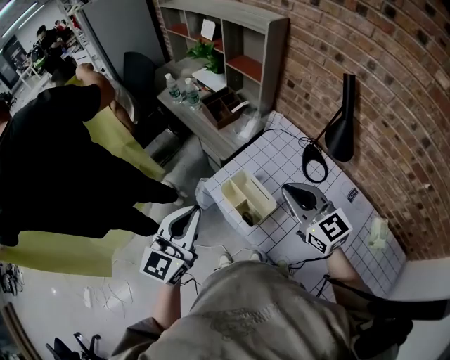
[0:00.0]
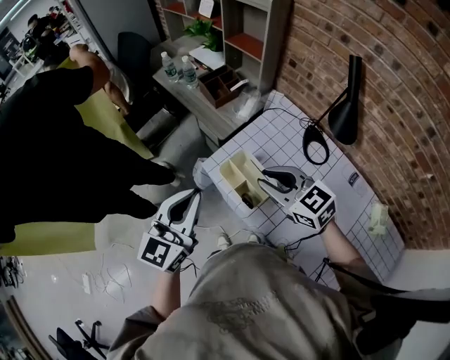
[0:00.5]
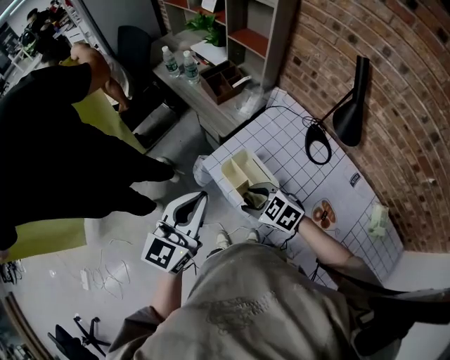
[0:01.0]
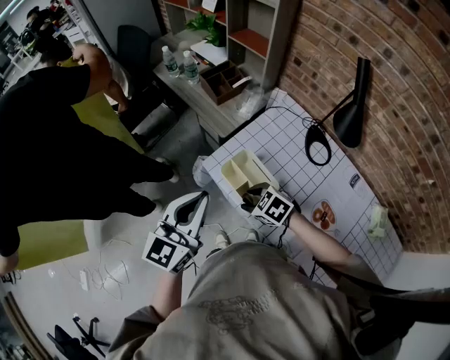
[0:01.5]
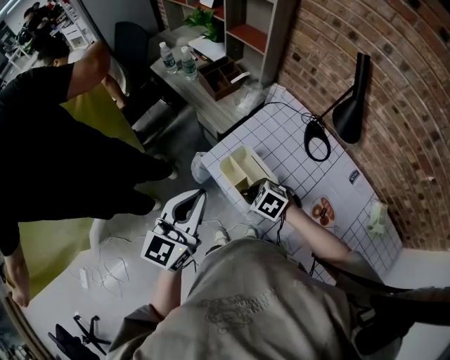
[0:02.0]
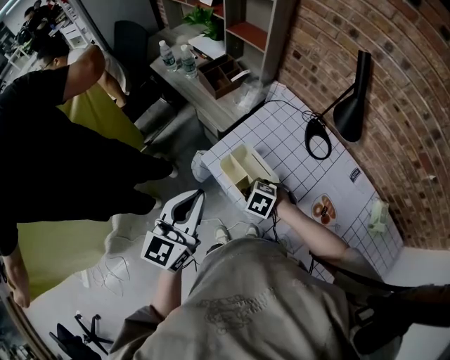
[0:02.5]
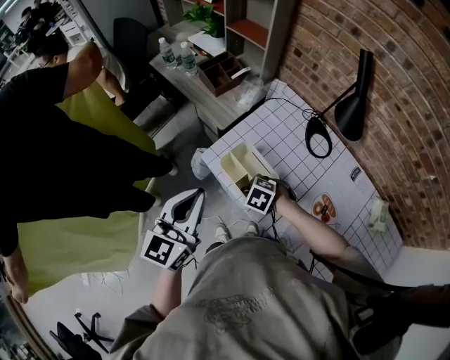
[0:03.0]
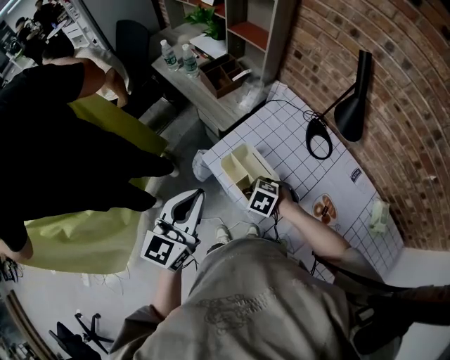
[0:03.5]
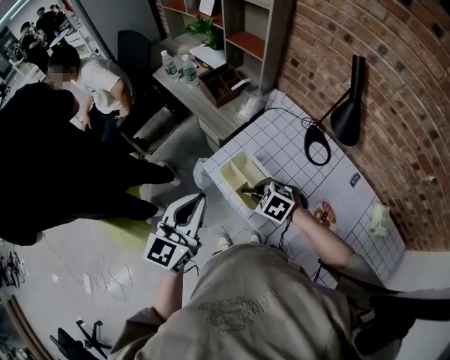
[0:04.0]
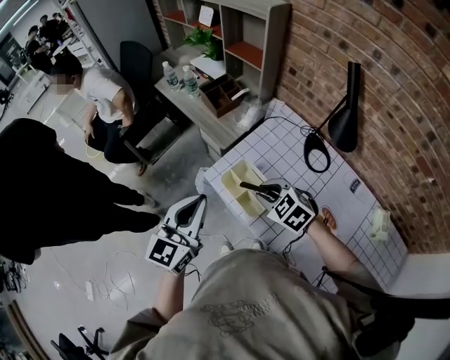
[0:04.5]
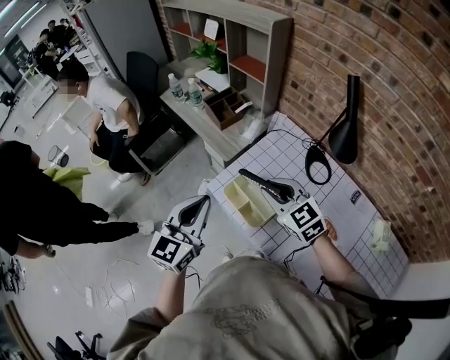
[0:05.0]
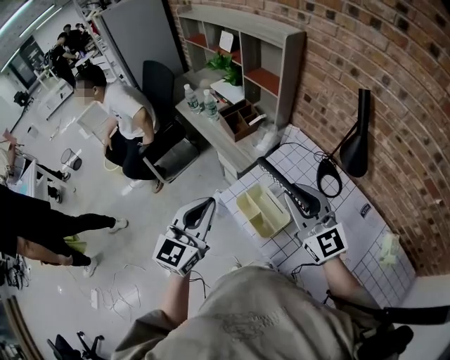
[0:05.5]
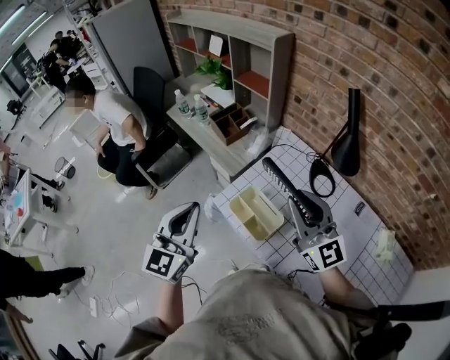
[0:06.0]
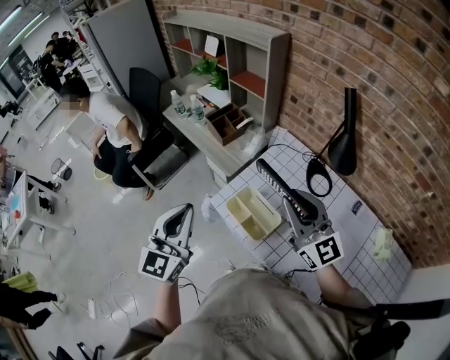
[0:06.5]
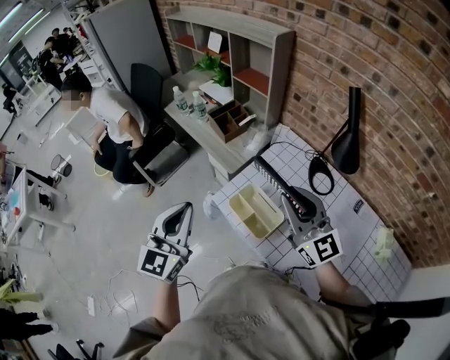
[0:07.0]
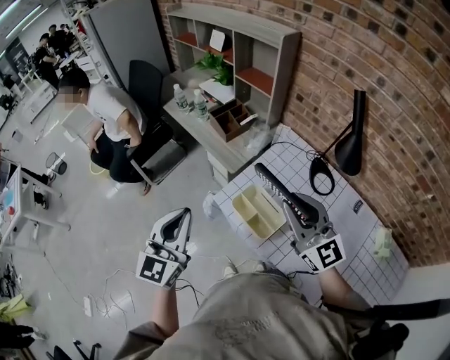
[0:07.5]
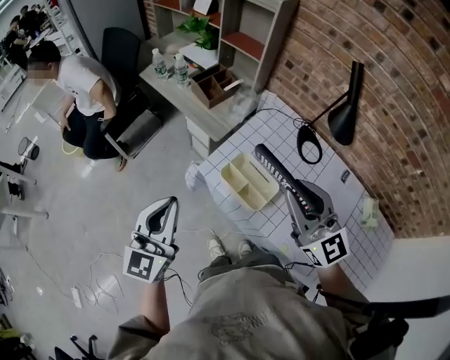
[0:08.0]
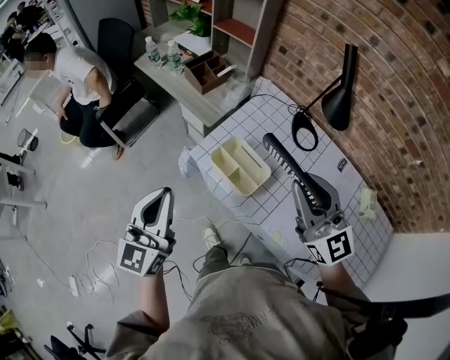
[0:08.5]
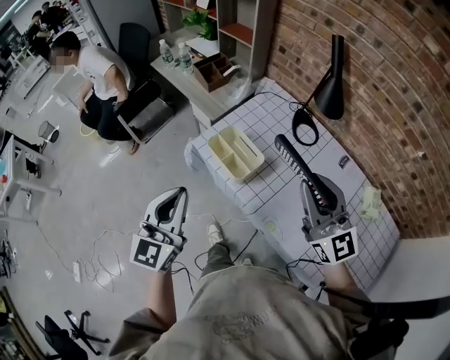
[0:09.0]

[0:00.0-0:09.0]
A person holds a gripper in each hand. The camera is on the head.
0:00.0 to 0:02.0: The right gripper moves downward, about 25 cm, points its fingers about 50 degrees further downward, and opens and closes again.
0:02.0 to 0:04.5: The right gripper travels upward by approximately 10 cm.
0:04.5 to 0:07.0: The left gripper moves to the left, some 5 cm, while the right gripper goes roughly 20 cm upward, and angles its fingers upward, by about 60 degrees.
0:07.0 to 0:09.0: The left gripper travels backward by roughly 15 cm; the right gripper goes roughly 20 cm backward and to the right.

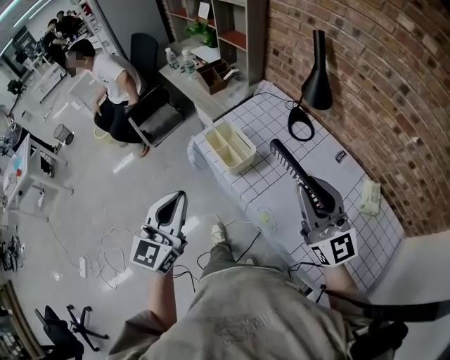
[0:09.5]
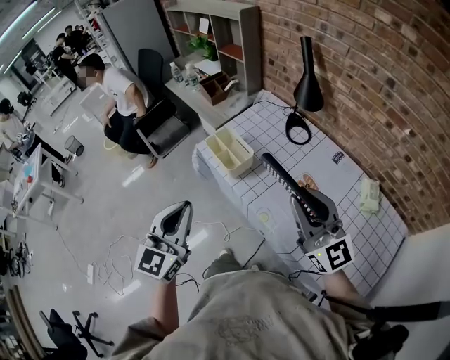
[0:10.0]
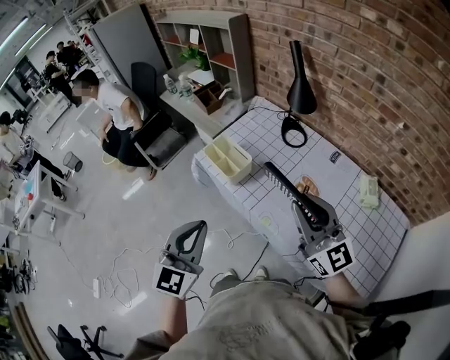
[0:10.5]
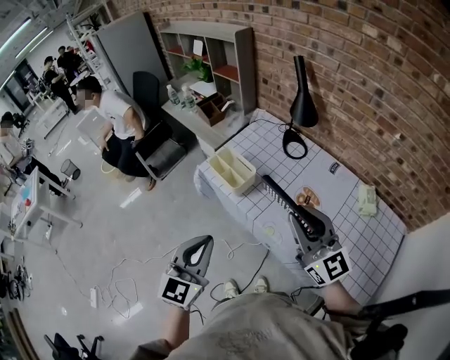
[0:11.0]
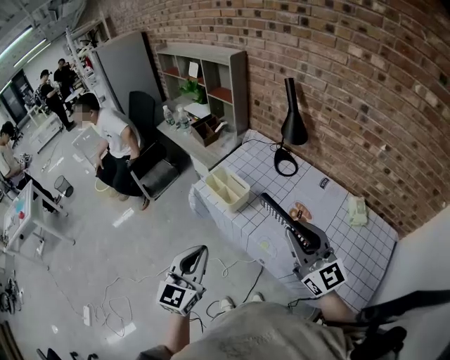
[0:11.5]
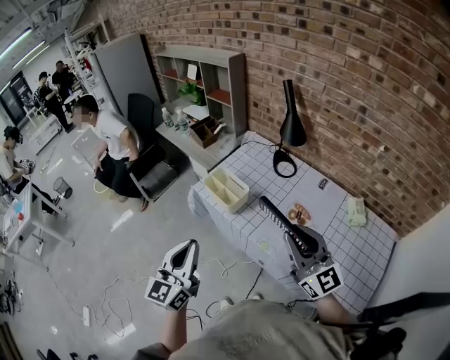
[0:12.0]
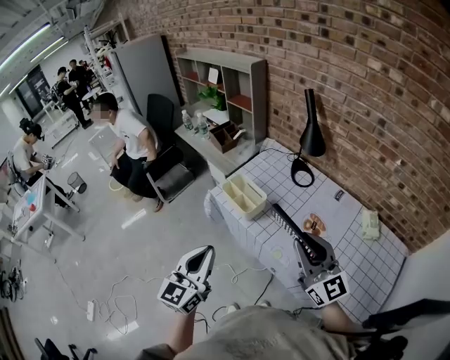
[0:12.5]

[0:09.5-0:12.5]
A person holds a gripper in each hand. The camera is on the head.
0:09.5 to 0:11.0: The two grippers go about 10 cm backward.
0:11.0 to 0:12.5: The left gripper travels to the left by about 5 cm.

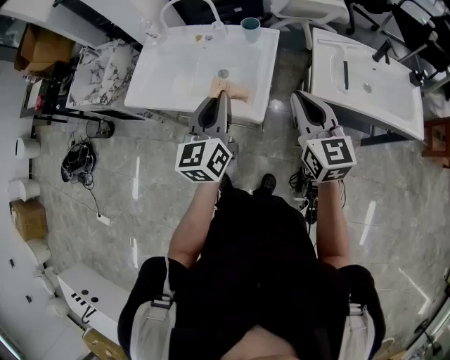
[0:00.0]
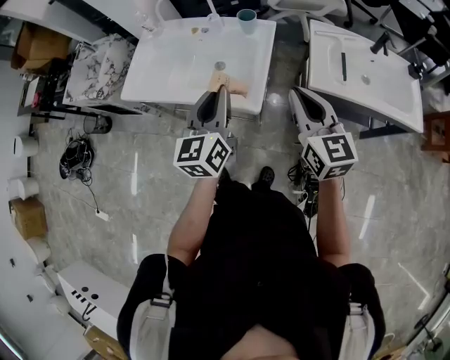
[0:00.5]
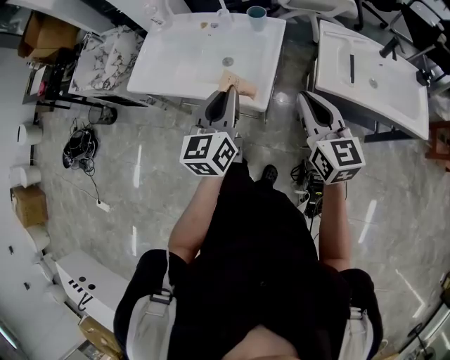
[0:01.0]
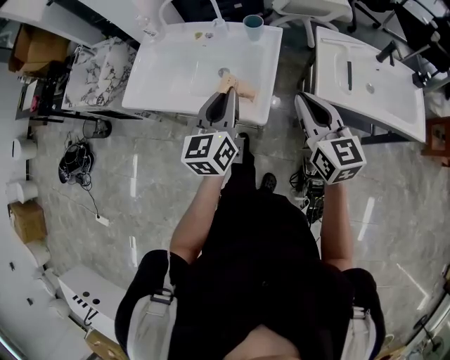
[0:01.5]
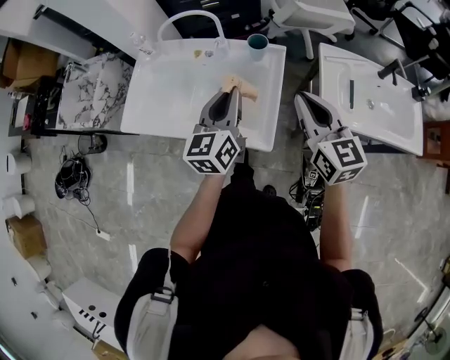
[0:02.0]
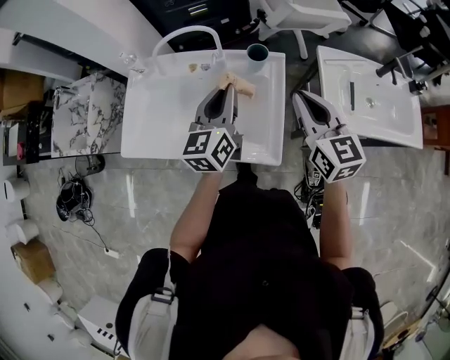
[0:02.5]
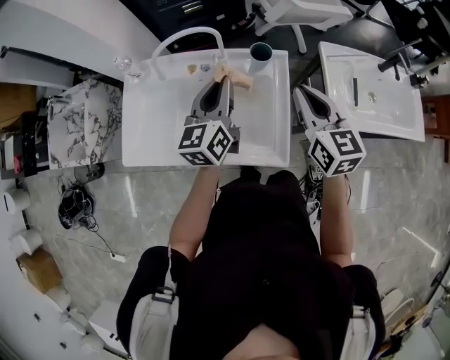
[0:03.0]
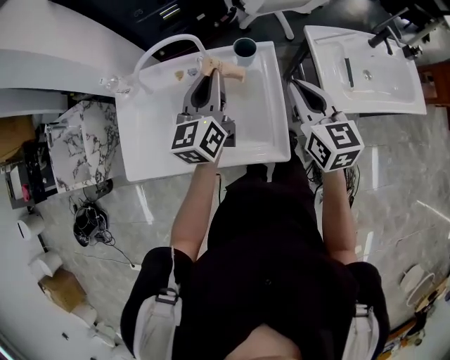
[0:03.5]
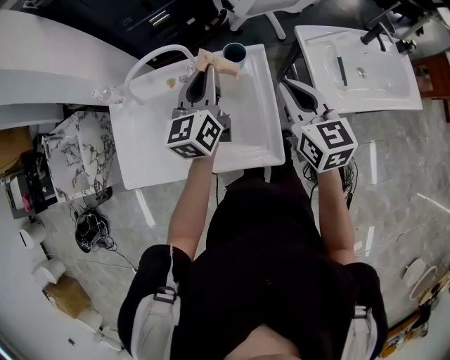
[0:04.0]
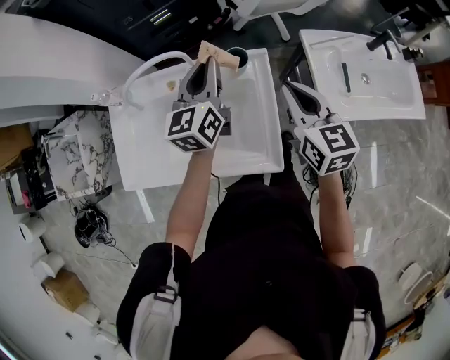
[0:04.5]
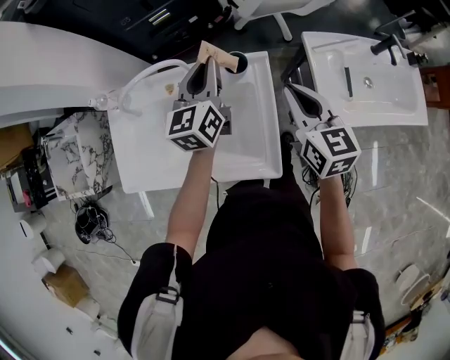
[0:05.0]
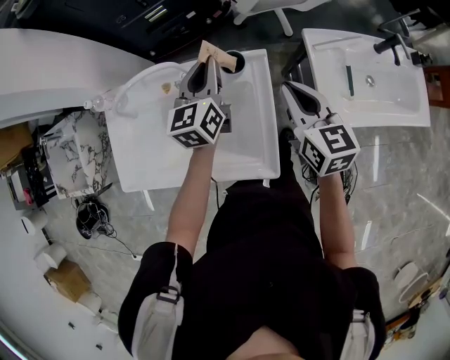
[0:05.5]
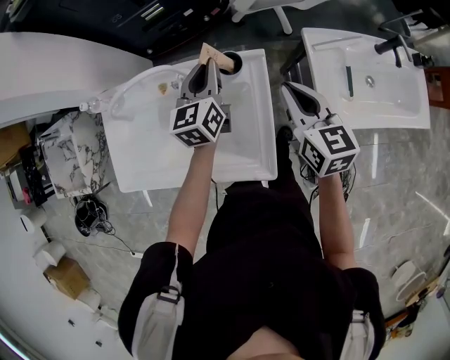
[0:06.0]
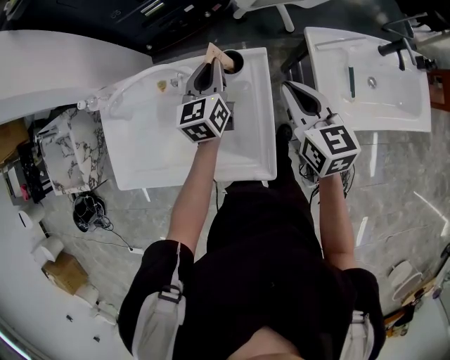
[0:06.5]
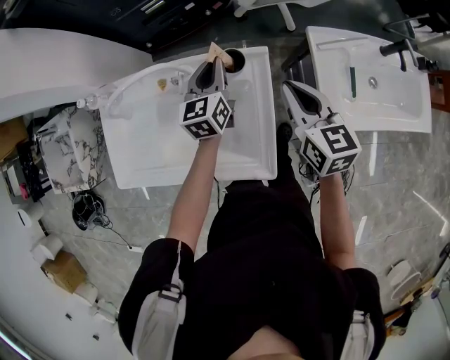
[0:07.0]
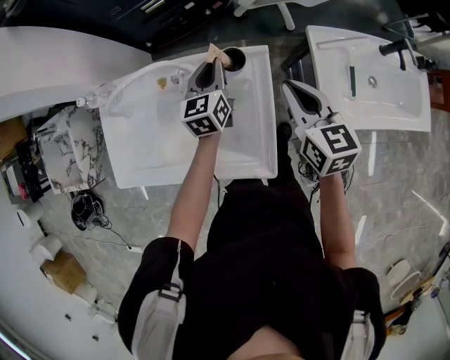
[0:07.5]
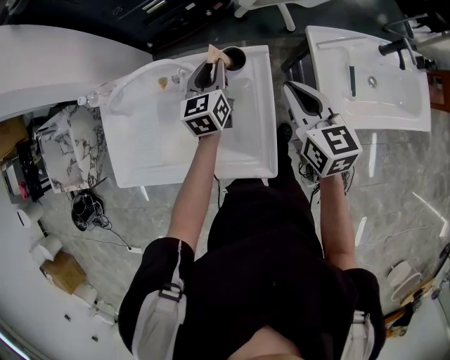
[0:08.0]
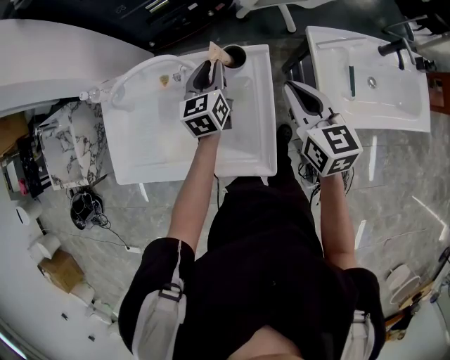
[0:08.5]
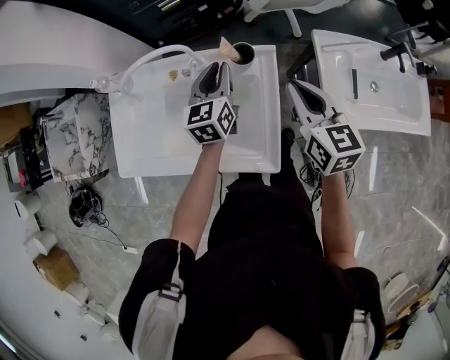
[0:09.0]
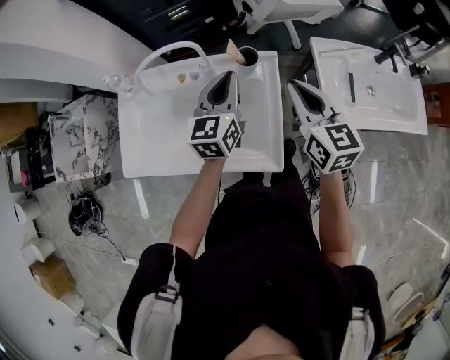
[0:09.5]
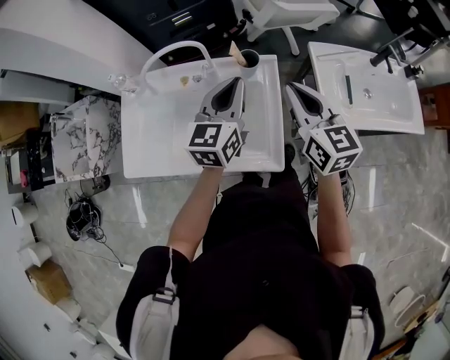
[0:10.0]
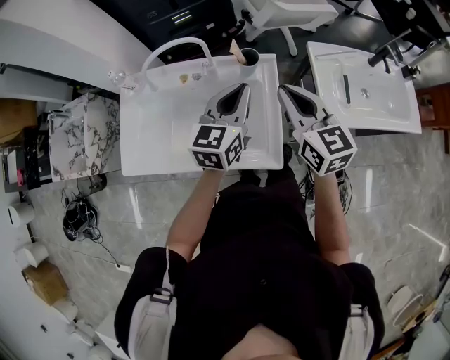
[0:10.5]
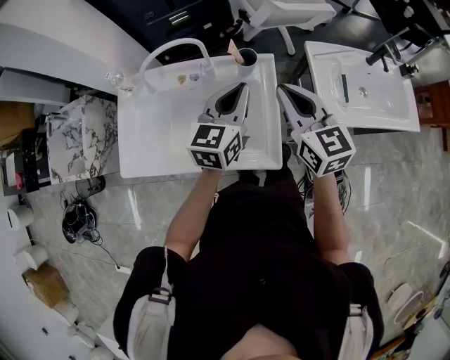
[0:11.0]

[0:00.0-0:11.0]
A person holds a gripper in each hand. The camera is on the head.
0:00.0 to 0:02.0: The grippers both shift forward by some 15 cm.
0:02.0 to 0:03.5: The right gripper shifts roughly 10 cm forward; the left gripper travels forward by roughly 15 cm.
0:03.5 to 0:05.5: The left gripper travels forward by about 10 cm. Meanwhile the right gripper is displaced forward by about 5 cm.
0:05.5 to 0:07.5: The left gripper heads downward, covering approximately 10 cm.
0:07.5 to 0:09.0: The left gripper changes place by roughly 5 cm.
0:09.0 to 0:11.0: The left gripper heads backward and upward, covering about 15 cm. Meanwhile the right gripper travels upward and backward by roughly 10 cm.

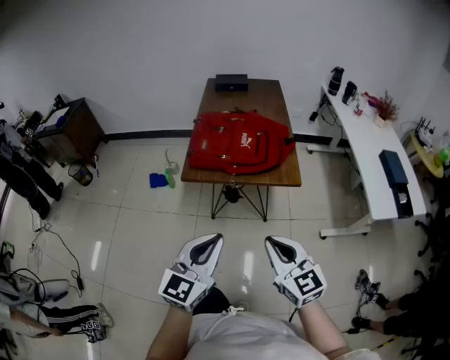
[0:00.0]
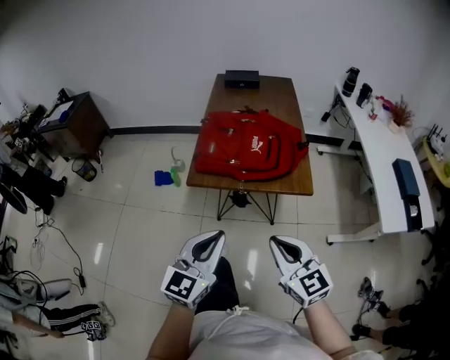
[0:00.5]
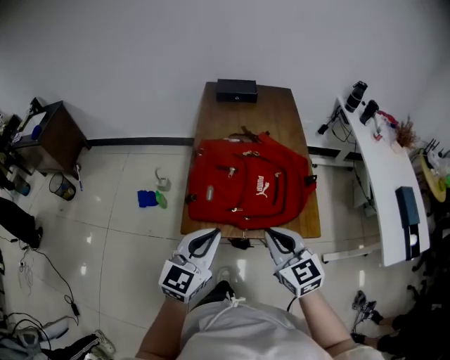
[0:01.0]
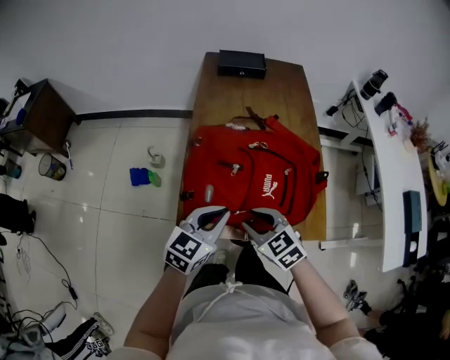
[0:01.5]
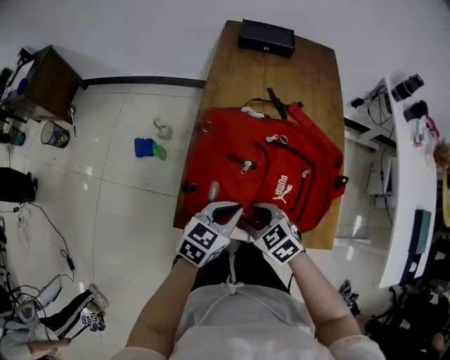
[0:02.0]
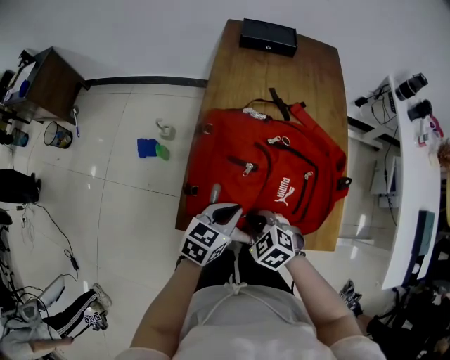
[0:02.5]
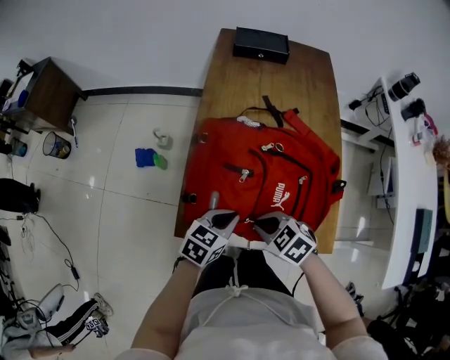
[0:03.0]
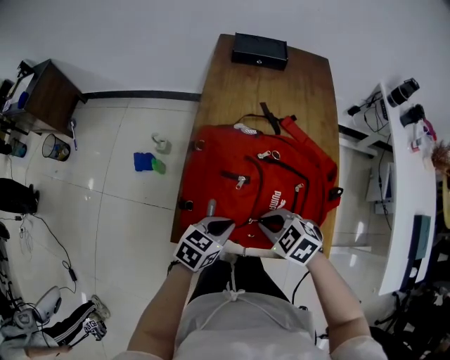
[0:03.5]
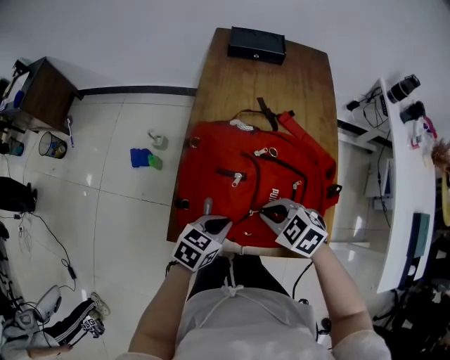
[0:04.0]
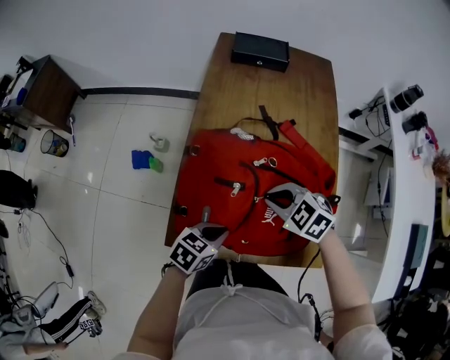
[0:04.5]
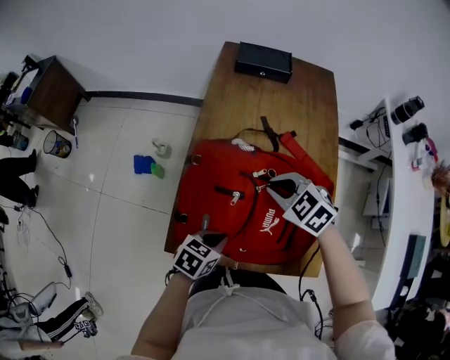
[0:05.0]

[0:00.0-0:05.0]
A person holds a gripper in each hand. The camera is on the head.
0:00.0 to 0:02.5: The two grippers travel together, forward, some 40 cm. The grippers both shift downward by about 25 cm. The left gripper turns by some 40 degrees. Meanwhile the right gripper angles its fingers downward, by about 50 degrees, and opens, then closes once more.
0:02.5 to 0:05.0: The right gripper changes place by approximately 25 cm.
